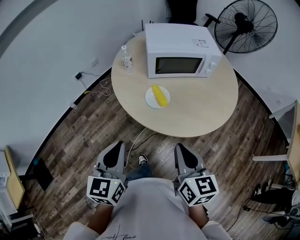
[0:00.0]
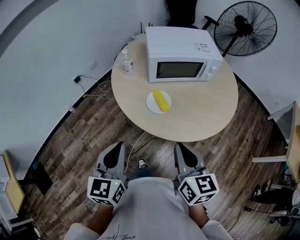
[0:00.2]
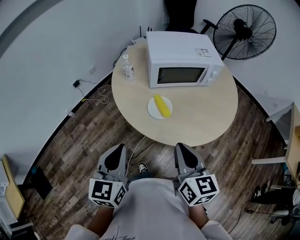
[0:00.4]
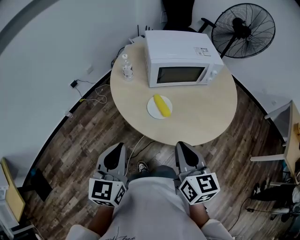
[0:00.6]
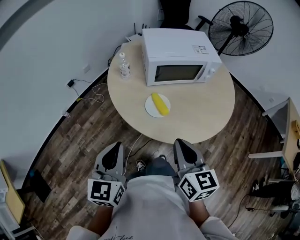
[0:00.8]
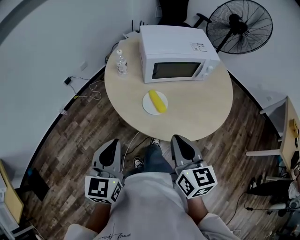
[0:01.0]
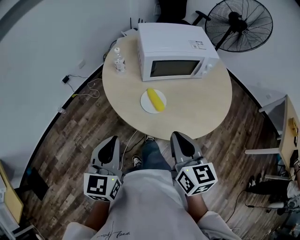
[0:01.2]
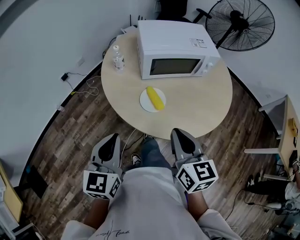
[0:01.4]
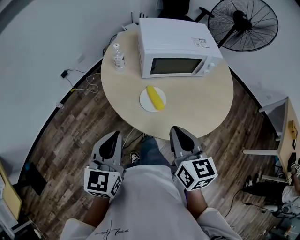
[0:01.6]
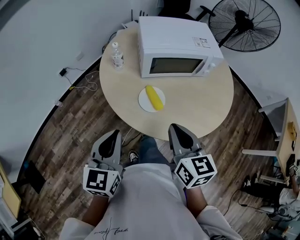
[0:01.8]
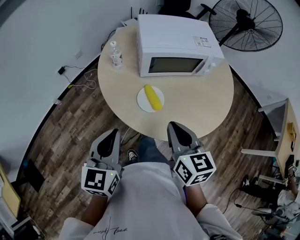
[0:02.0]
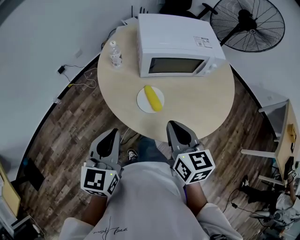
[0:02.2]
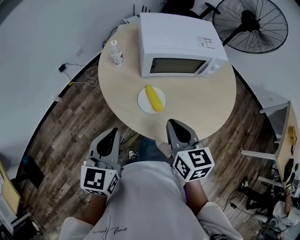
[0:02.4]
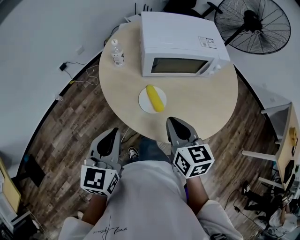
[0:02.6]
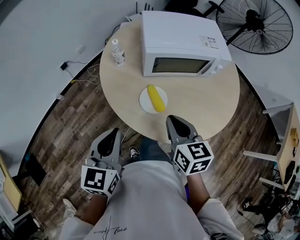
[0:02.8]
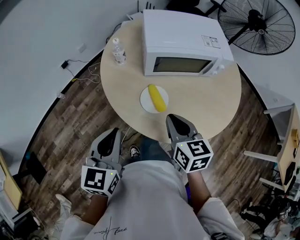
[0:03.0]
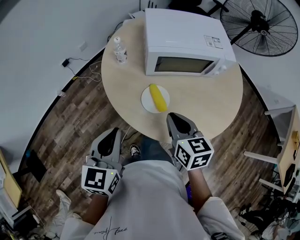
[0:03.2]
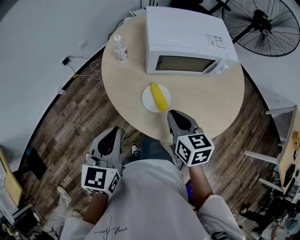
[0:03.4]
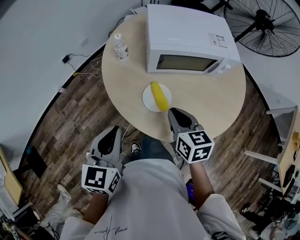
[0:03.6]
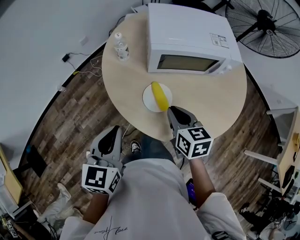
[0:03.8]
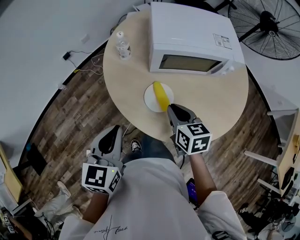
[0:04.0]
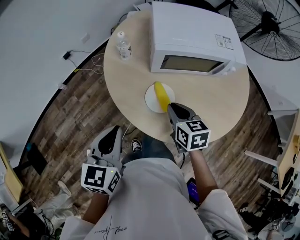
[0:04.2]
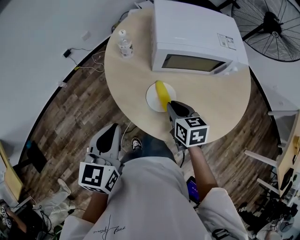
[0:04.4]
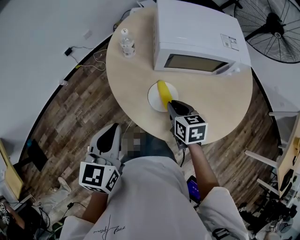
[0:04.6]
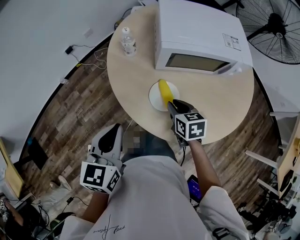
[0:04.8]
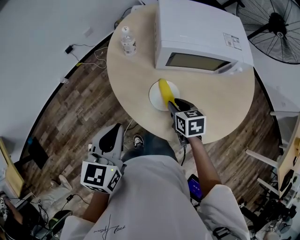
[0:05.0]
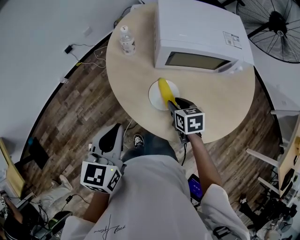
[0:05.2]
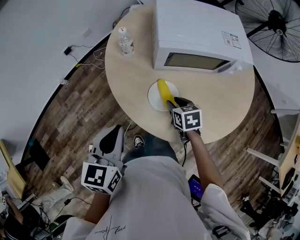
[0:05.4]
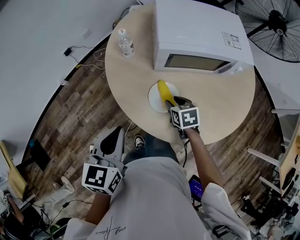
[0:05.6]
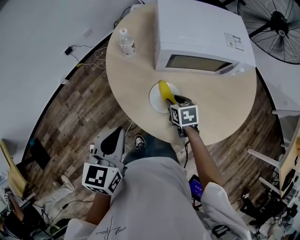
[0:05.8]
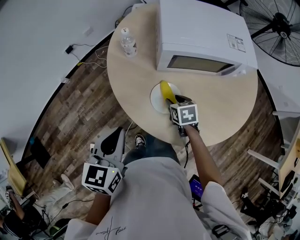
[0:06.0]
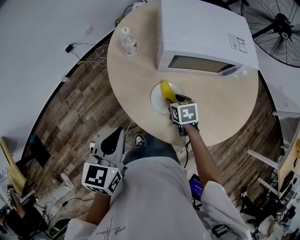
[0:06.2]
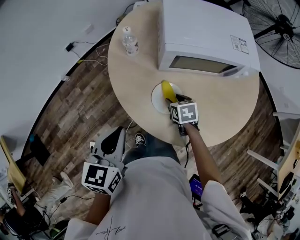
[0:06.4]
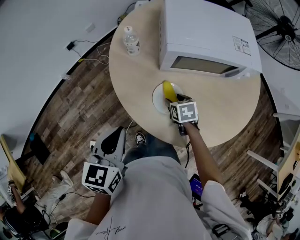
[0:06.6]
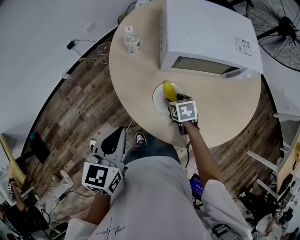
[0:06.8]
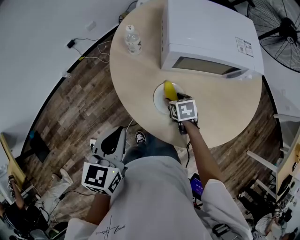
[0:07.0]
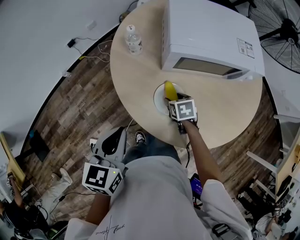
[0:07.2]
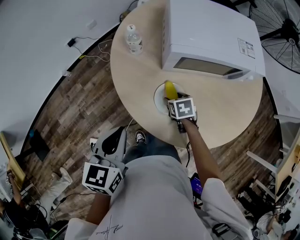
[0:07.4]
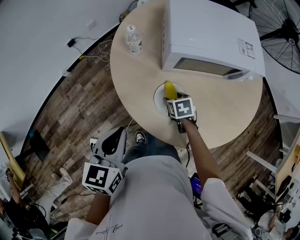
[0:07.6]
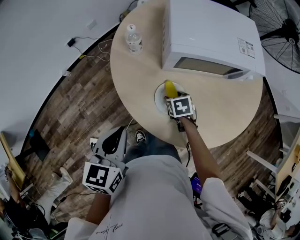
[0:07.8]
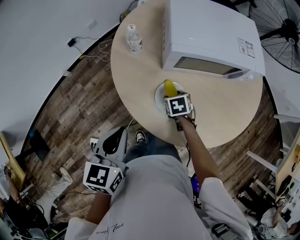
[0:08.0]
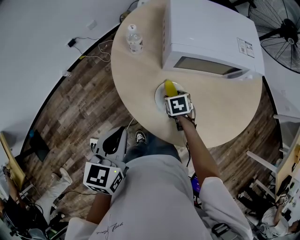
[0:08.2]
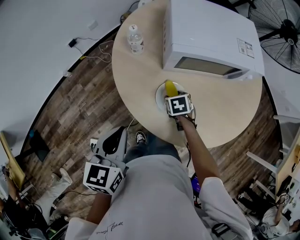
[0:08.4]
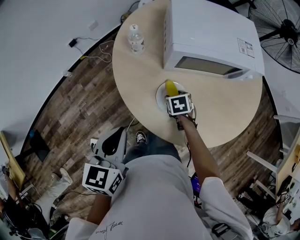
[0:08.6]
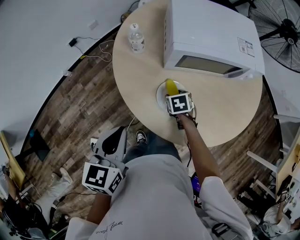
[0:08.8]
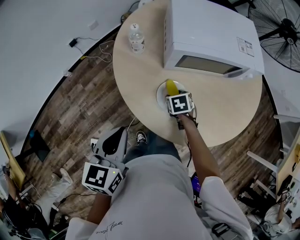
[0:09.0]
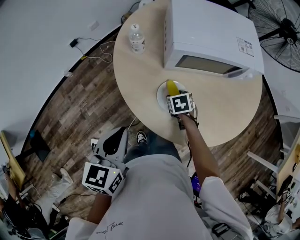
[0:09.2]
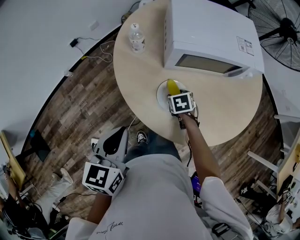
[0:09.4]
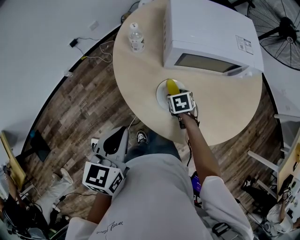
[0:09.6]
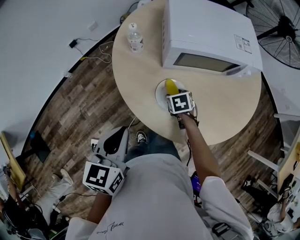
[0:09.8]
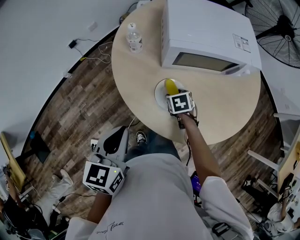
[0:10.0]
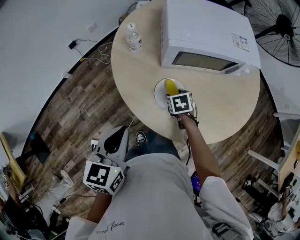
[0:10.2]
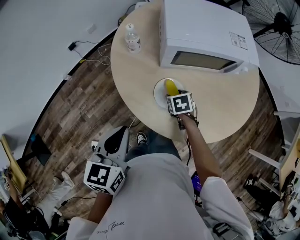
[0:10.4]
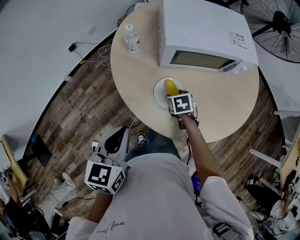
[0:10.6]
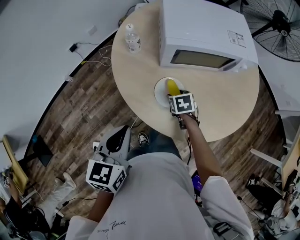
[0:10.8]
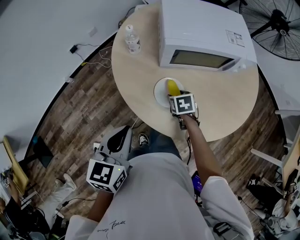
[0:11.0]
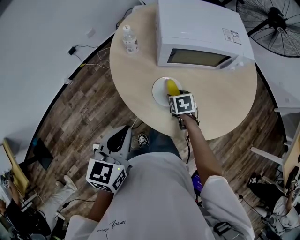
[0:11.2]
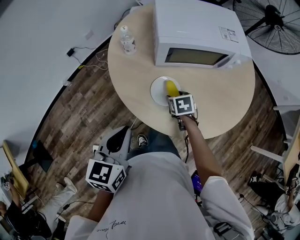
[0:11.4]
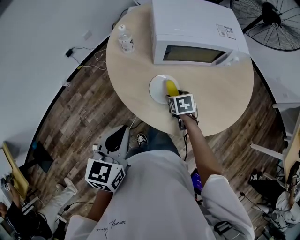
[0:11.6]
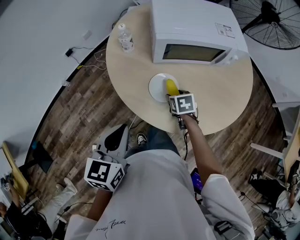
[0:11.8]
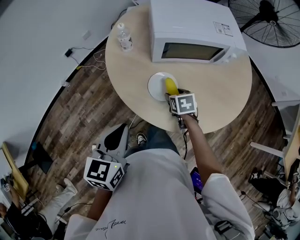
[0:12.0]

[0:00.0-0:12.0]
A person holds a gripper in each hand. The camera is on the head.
0:00.0 to 0:01.6: Both grippers travel together forward, roughly 10 cm.
0:01.6 to 0:03.0: The left gripper moves about 5 cm; the right gripper travels forward and downward by about 10 cm.
0:03.0 to 0:04.4: The right gripper moves downward and forward, roughly 10 cm.
0:04.4 to 0:06.0: The right gripper goes some 10 cm downward, and opens its fingers.
0:06.0 to 0:10.4: The grippers make only small movements.
0:10.4 to 0:12.0: The right gripper ends up roughly 5 cm from where it was.

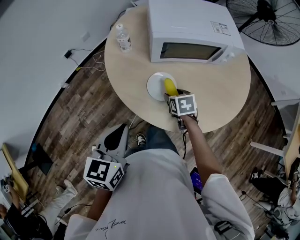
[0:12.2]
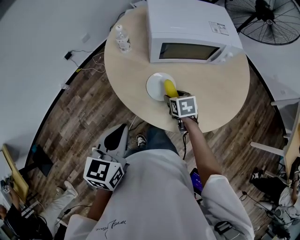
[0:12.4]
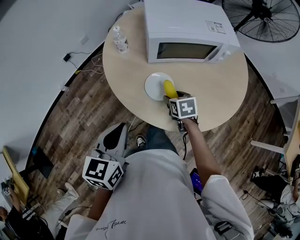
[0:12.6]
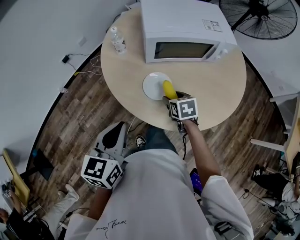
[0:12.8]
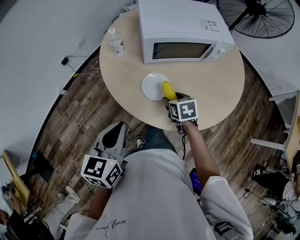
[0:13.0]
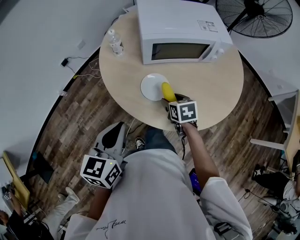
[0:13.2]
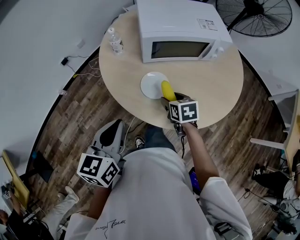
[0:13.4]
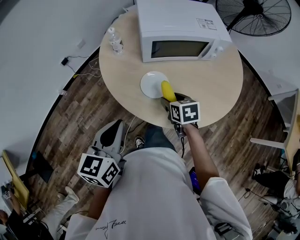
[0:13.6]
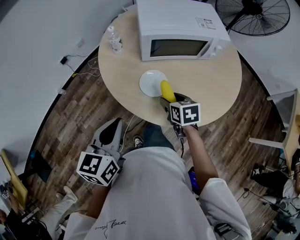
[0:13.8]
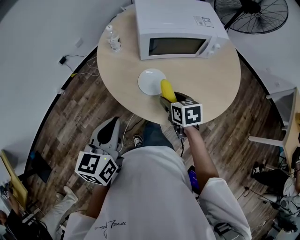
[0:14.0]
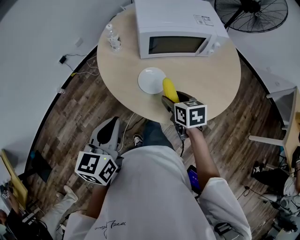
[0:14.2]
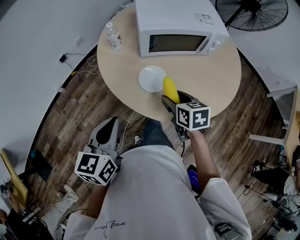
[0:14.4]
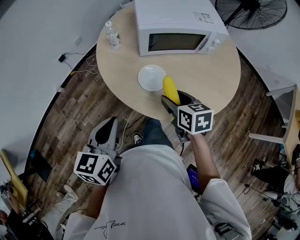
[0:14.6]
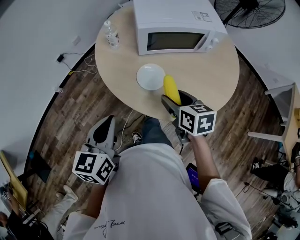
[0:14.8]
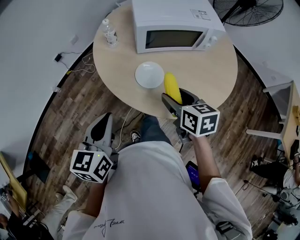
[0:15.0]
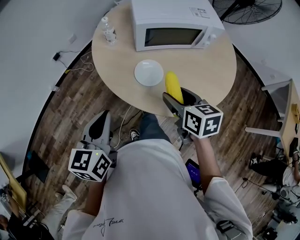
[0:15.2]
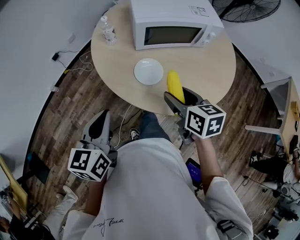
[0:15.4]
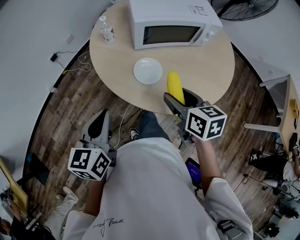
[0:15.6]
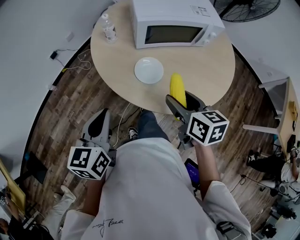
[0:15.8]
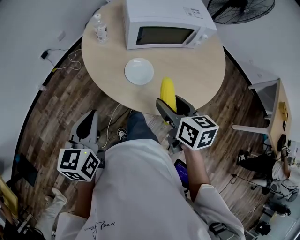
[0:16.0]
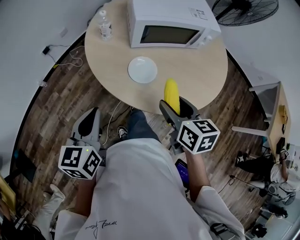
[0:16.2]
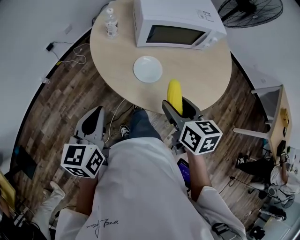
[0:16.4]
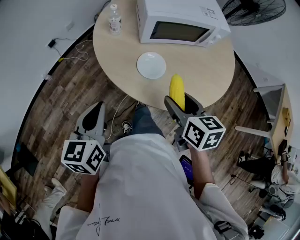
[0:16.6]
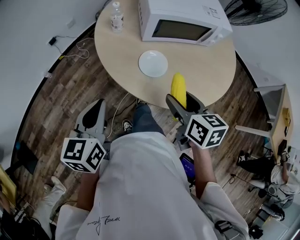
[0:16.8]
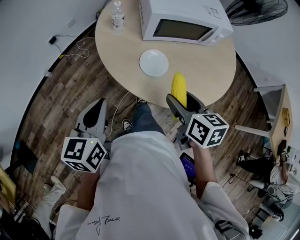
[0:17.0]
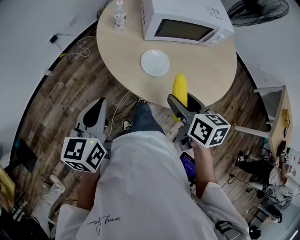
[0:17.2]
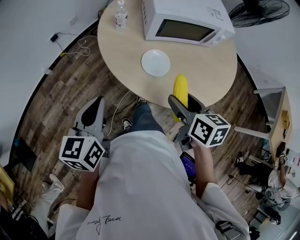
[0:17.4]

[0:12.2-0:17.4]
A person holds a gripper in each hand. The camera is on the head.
0:12.2 to 0:14.0: The right gripper shifts approximately 10 cm upward and backward.
0:14.0 to 0:15.6: The right gripper heads upward and backward, covering some 10 cm.
0:15.6 to 0:17.4: The left gripper goes some 5 cm to the left.

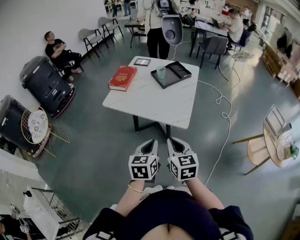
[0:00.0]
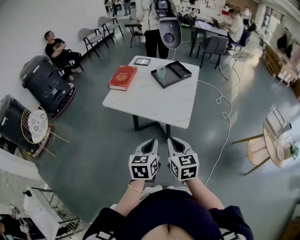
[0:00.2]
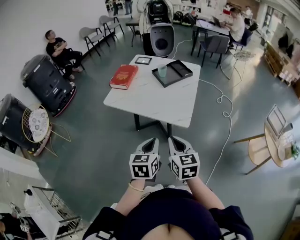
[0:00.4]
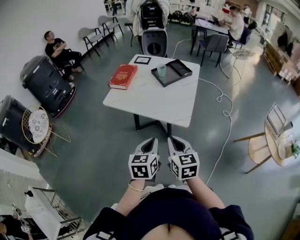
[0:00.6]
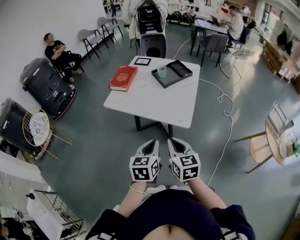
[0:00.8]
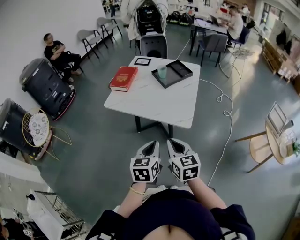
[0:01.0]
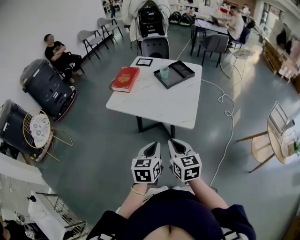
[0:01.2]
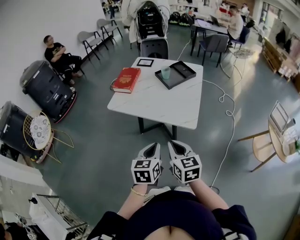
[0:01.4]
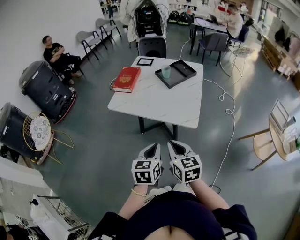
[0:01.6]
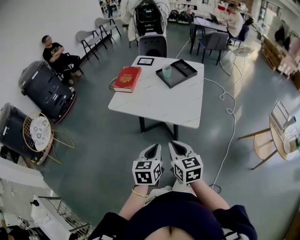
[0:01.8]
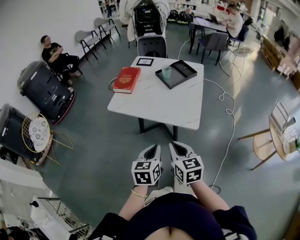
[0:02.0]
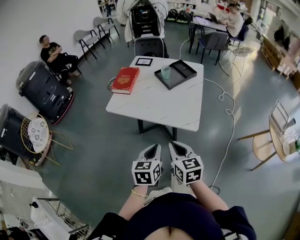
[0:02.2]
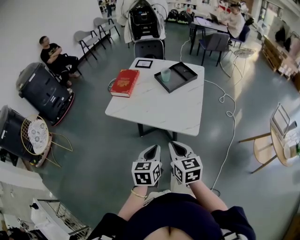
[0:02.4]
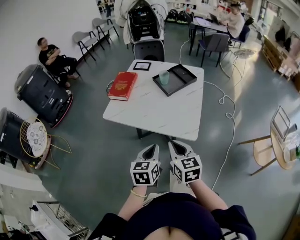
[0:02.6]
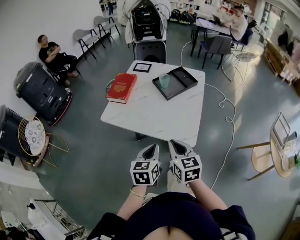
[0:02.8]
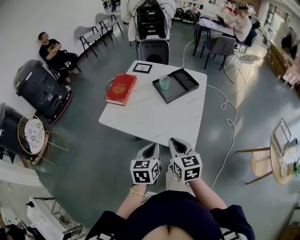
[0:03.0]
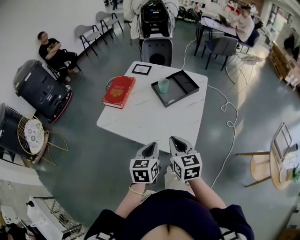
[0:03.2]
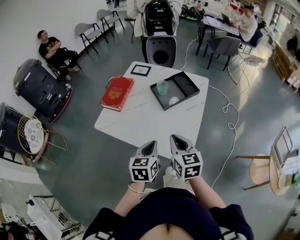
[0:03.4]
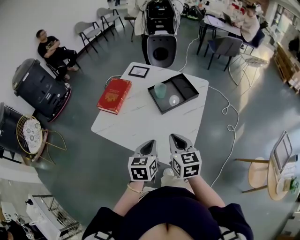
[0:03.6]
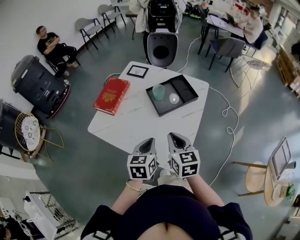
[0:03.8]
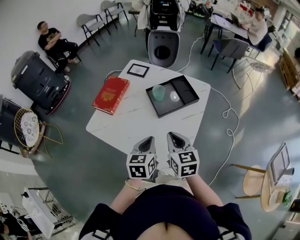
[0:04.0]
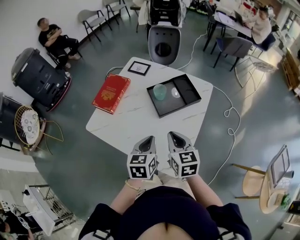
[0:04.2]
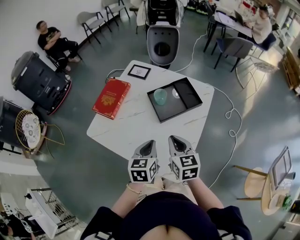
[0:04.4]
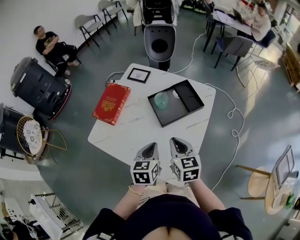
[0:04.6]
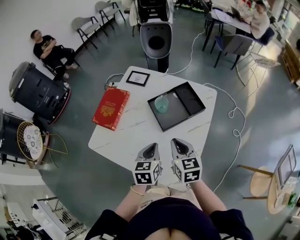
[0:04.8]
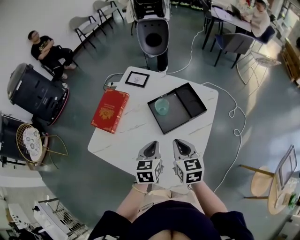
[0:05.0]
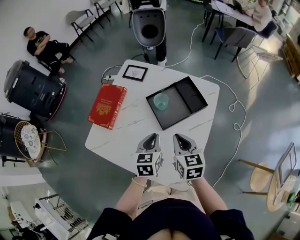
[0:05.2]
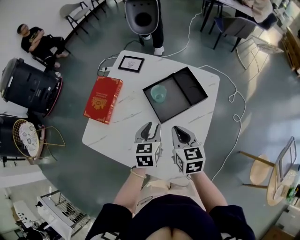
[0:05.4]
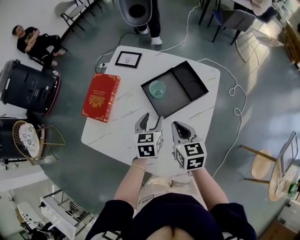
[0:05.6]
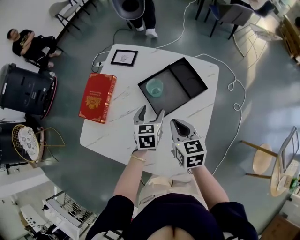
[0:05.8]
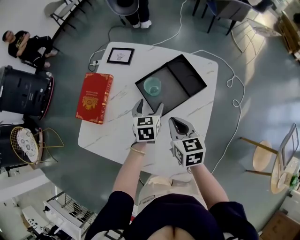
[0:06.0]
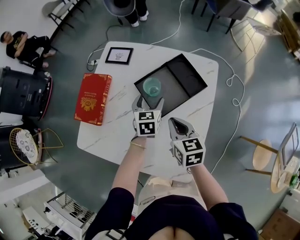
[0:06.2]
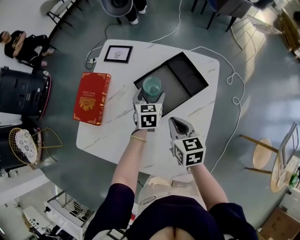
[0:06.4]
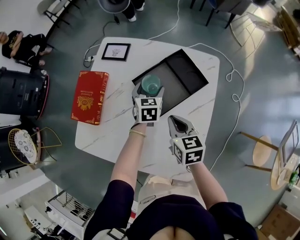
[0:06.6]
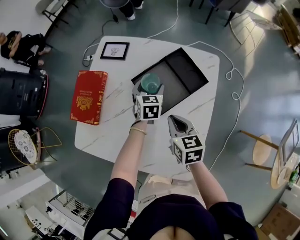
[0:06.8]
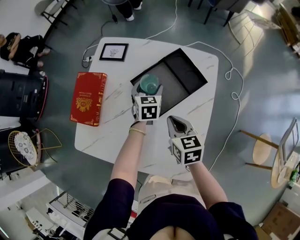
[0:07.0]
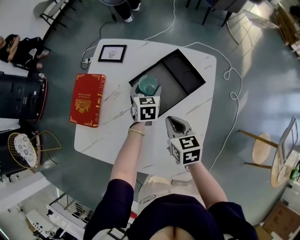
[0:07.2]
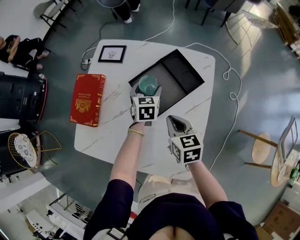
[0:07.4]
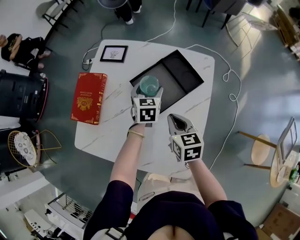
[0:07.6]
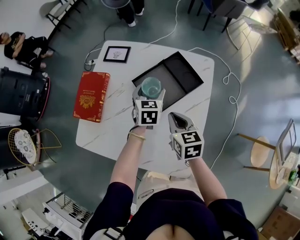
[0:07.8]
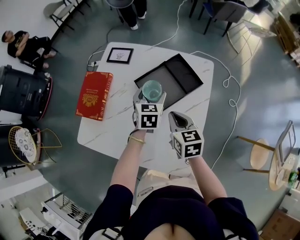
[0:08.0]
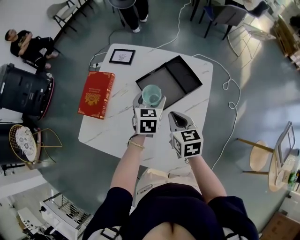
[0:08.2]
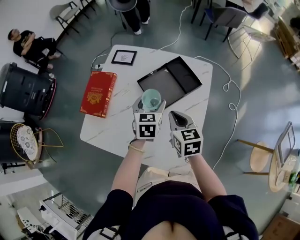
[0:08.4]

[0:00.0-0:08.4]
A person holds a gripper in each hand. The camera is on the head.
0:00.0 to 0:01.4: The right gripper heads to the left, covering some 5 cm.
0:01.4 to 0:02.8: The two grippers go roughly 15 cm forward.
0:02.8 to 0:04.2: Both grippers move forward and to the right, roughly 25 cm.
0:04.2 to 0:05.6: The right gripper moves forward and downward, approximately 15 cm; the left gripper shifts about 20 cm forward and downward, and opens its fingers.
0:05.6 to 0:07.0: The left gripper heads forward and downward, covering roughly 15 cm, and opens up; the right gripper moves downward, about 5 cm.
0:07.0 to 0:08.4: The right gripper travels upward by approximately 5 cm. The left gripper is displaced backward and upward by some 15 cm.
